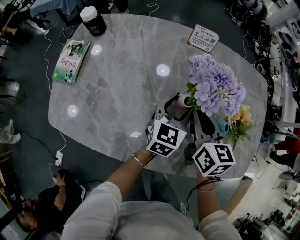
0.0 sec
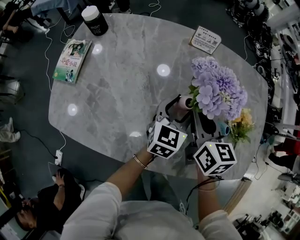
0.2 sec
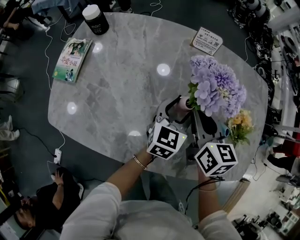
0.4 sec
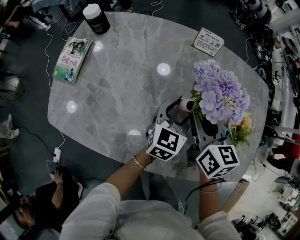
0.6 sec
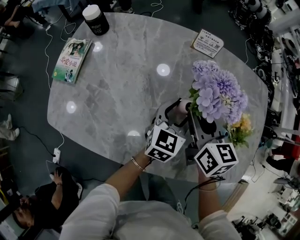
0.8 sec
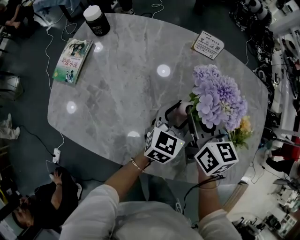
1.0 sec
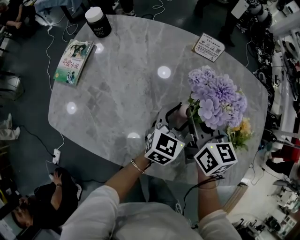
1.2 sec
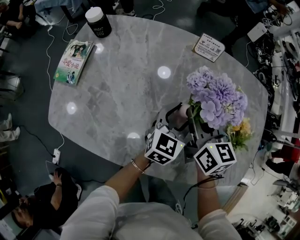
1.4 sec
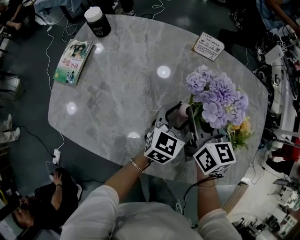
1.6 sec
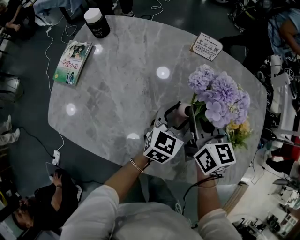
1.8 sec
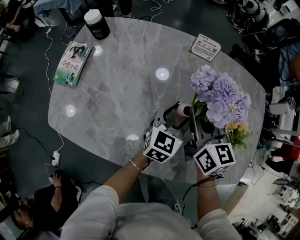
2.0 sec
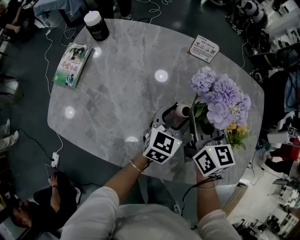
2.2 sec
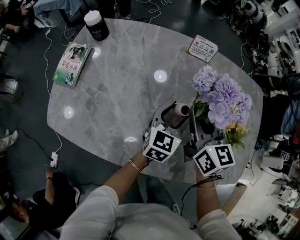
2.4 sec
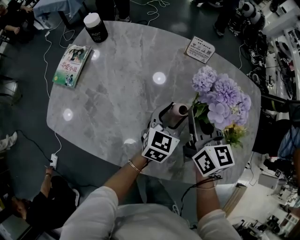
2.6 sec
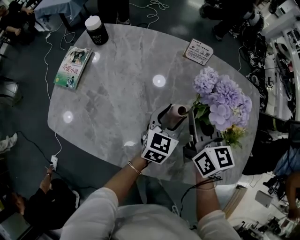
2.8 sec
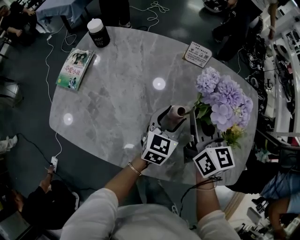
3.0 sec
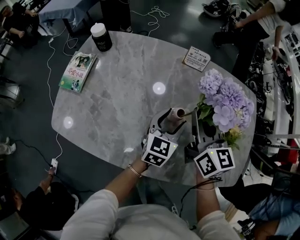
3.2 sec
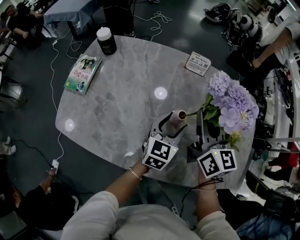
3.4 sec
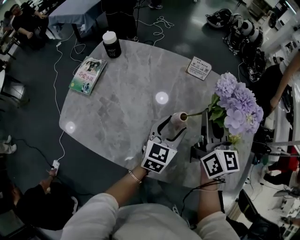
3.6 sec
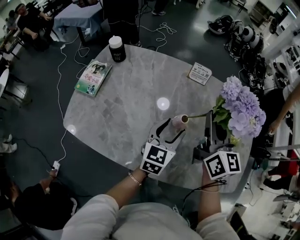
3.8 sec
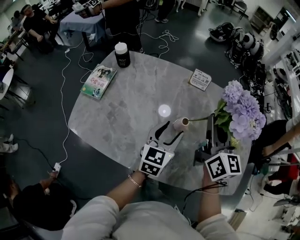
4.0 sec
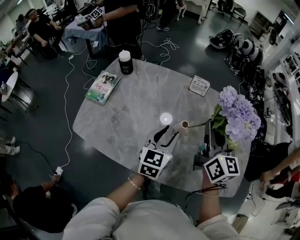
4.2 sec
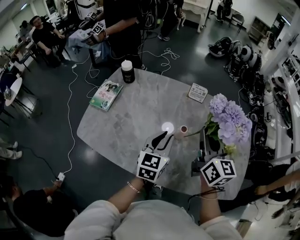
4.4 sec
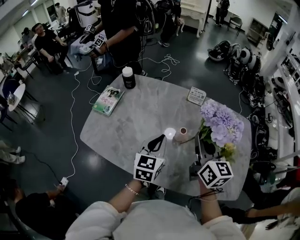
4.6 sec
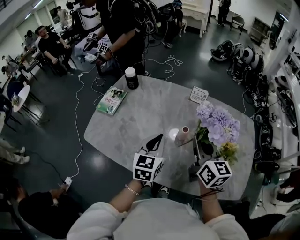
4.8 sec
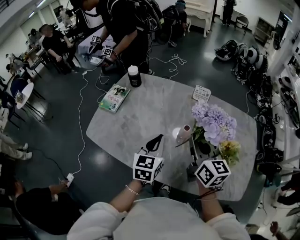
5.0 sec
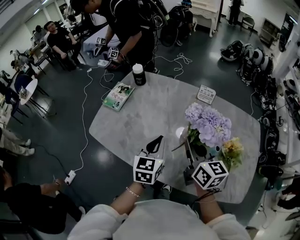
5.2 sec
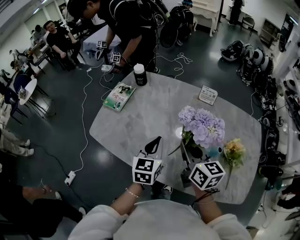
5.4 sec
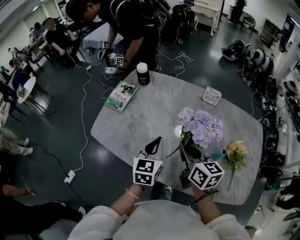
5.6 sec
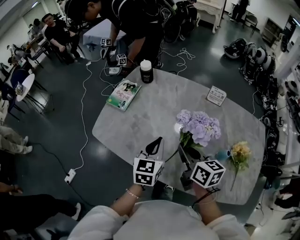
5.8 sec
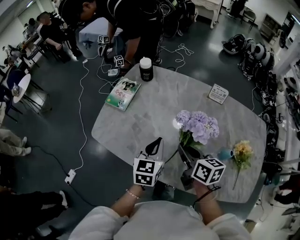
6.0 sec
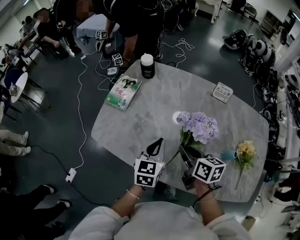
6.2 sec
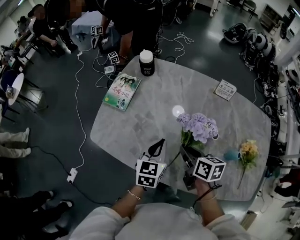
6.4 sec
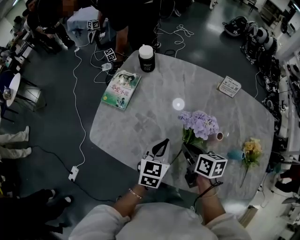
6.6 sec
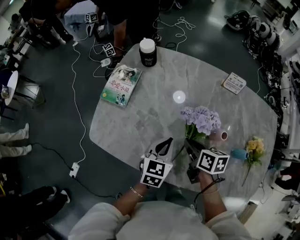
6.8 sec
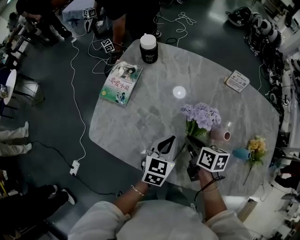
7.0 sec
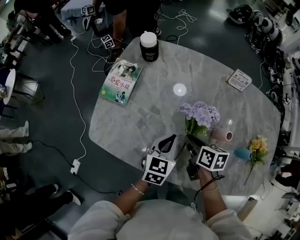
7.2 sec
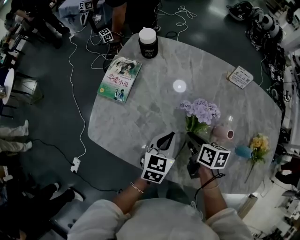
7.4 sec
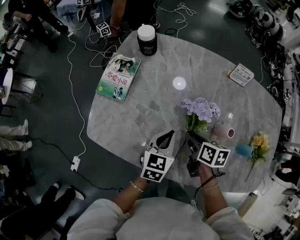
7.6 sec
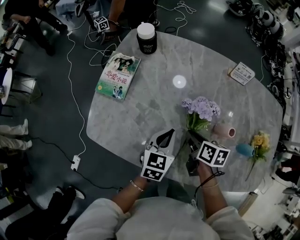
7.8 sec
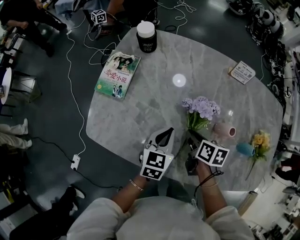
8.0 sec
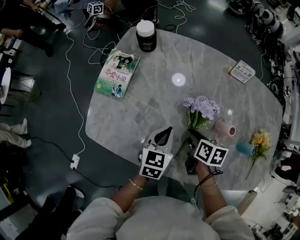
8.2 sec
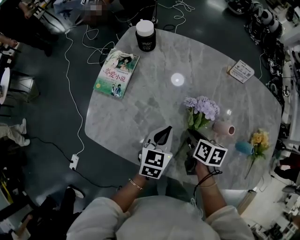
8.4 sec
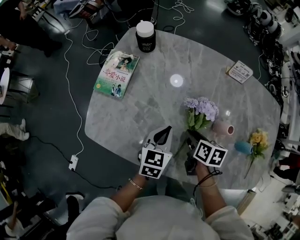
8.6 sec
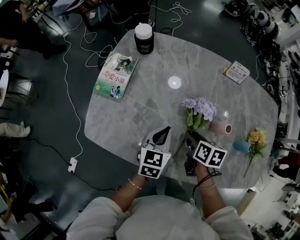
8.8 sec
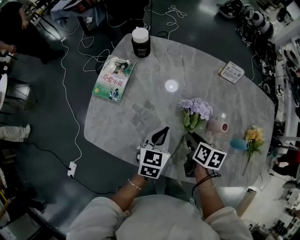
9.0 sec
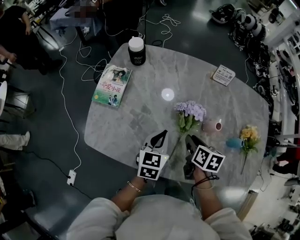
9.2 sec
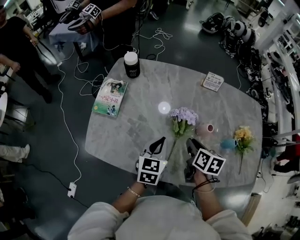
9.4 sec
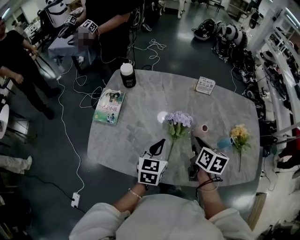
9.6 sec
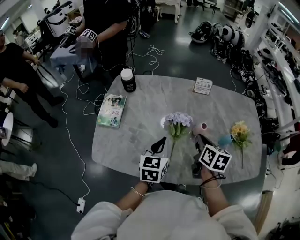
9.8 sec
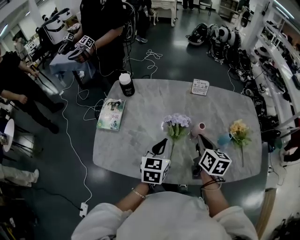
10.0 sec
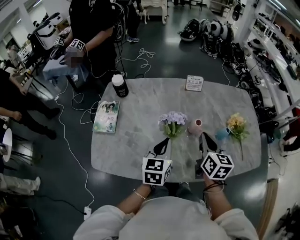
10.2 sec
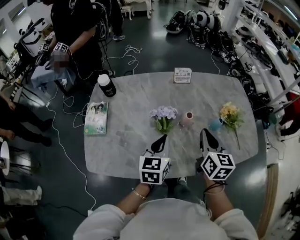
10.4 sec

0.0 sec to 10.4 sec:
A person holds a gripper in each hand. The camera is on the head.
0.0 sec to 1.4 sec: The right gripper shifts by about 5 cm.
1.4 sec to 3.0 sec: The right gripper moves upward, about 5 cm.
3.0 sec to 4.4 sec: The left gripper moves upward, to the left and backward, some 15 cm, and closes up. Meanwhile the right gripper heads upward and backward, covering some 15 cm.
4.4 sec to 6.0 sec: The left gripper shifts roughly 15 cm to the left; the right gripper is displaced to the left and downward by roughly 20 cm, and changes its angle by roughly 40 degrees.
6.0 sec to 7.4 sec: Both grippers move downward and forward, about 15 cm. The right gripper changes its angle by about 20 degrees.
7.4 sec to 9.0 sec: There are only small adjustments of the grippers.
9.0 sec to 10.4 sec: The left gripper travels upward and to the right by about 15 cm. The right gripper shifts approximately 25 cm upward and to the right, tilts its fingers about 30 degrees upward, and closes up.

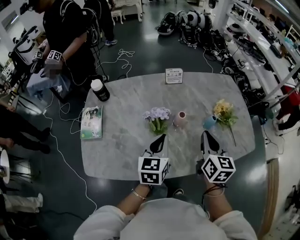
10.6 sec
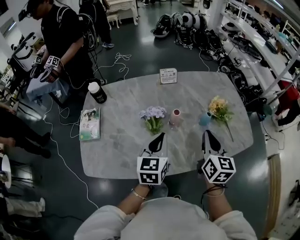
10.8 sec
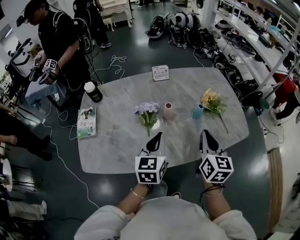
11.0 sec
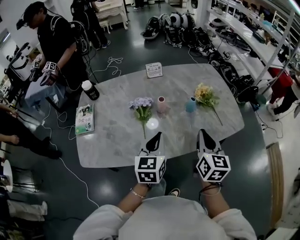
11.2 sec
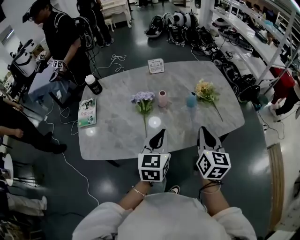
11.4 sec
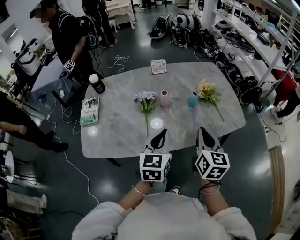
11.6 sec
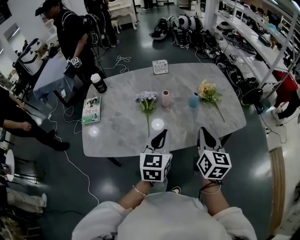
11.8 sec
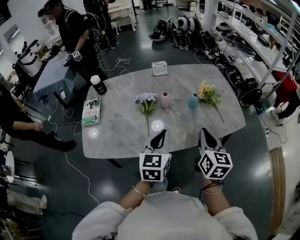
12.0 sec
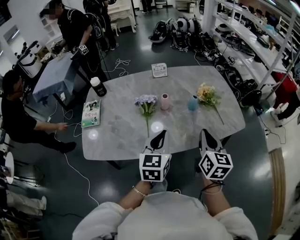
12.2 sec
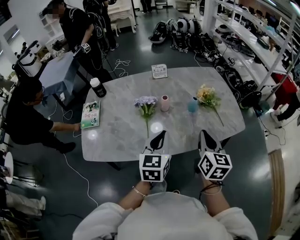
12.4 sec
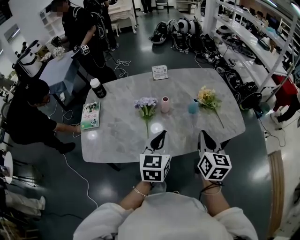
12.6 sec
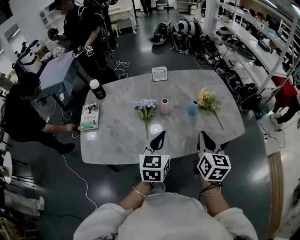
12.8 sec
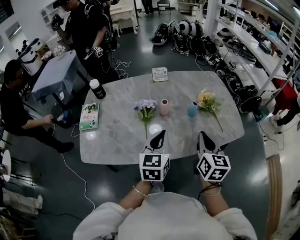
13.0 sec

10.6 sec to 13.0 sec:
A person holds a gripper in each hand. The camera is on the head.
10.6 sec to 11.8 sec: The grippers both shift backward and to the right by about 15 cm.
11.8 sec to 13.0 sec: The grippers make only small movements.

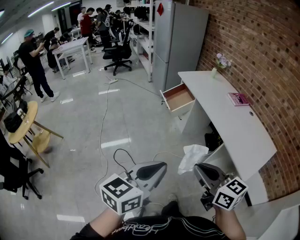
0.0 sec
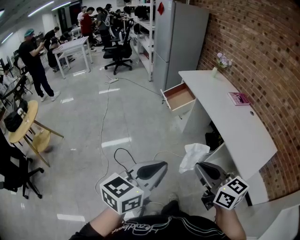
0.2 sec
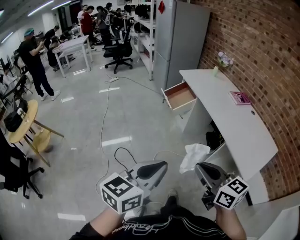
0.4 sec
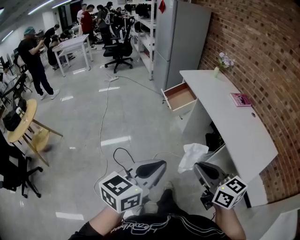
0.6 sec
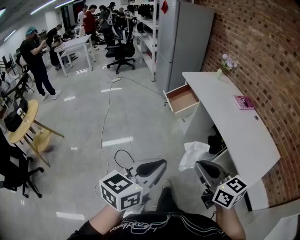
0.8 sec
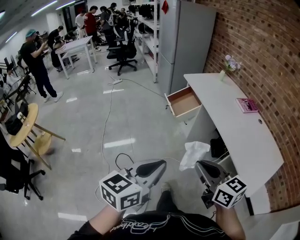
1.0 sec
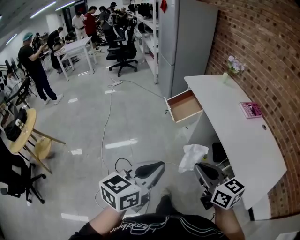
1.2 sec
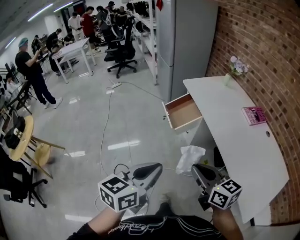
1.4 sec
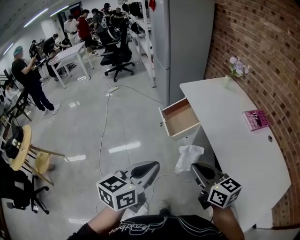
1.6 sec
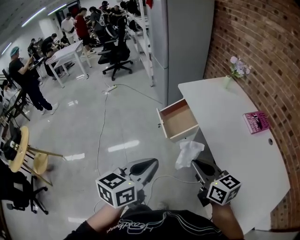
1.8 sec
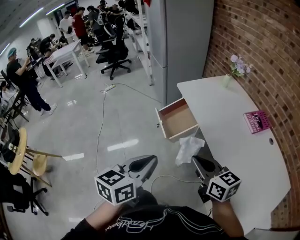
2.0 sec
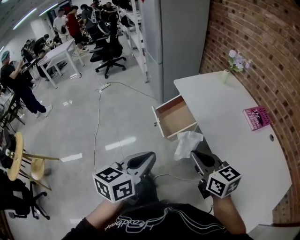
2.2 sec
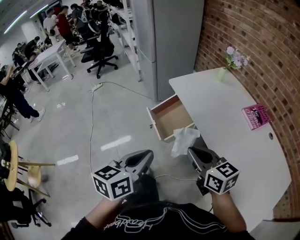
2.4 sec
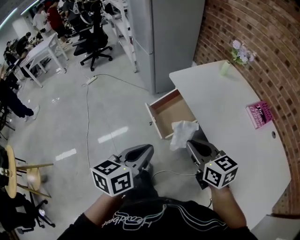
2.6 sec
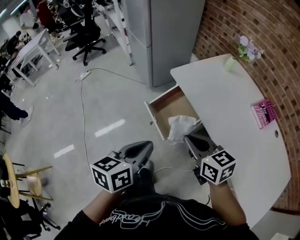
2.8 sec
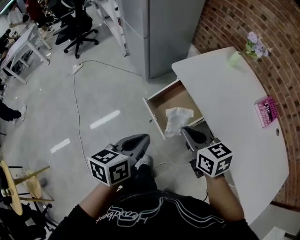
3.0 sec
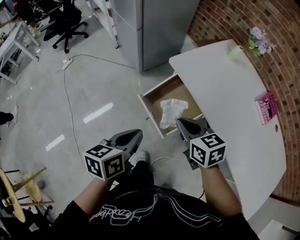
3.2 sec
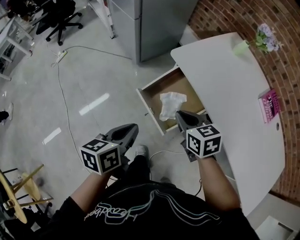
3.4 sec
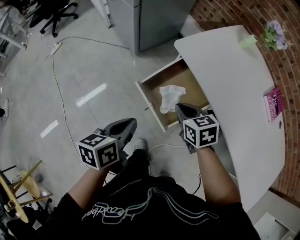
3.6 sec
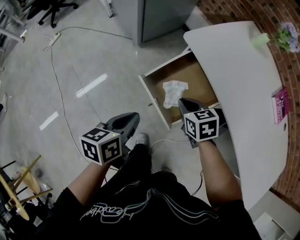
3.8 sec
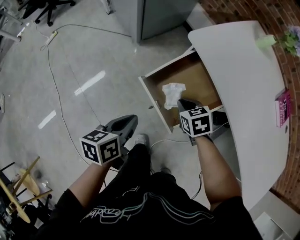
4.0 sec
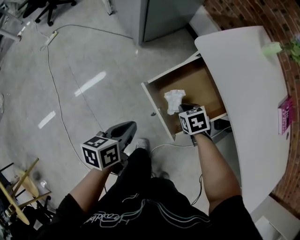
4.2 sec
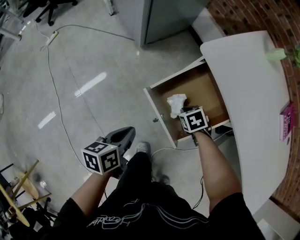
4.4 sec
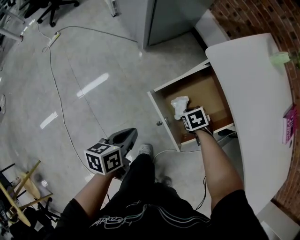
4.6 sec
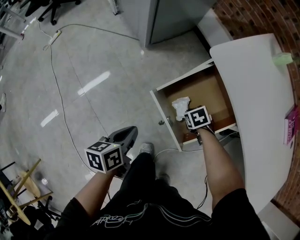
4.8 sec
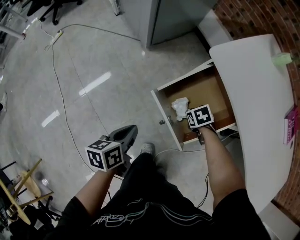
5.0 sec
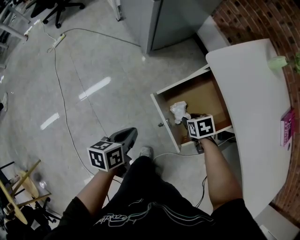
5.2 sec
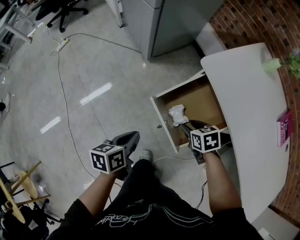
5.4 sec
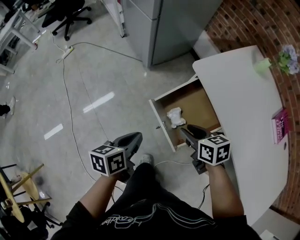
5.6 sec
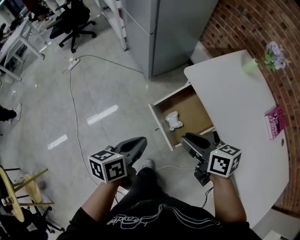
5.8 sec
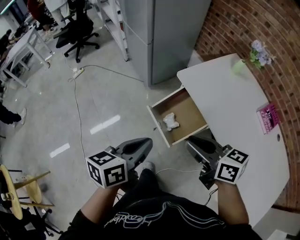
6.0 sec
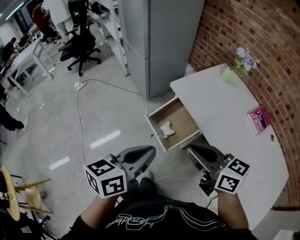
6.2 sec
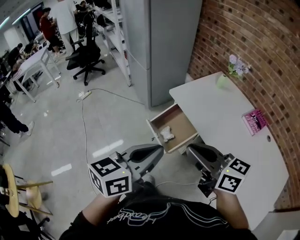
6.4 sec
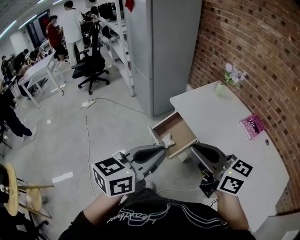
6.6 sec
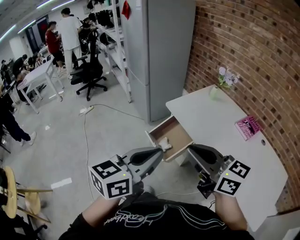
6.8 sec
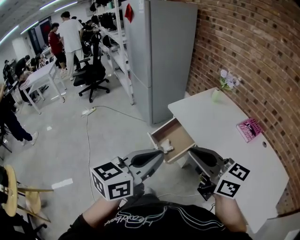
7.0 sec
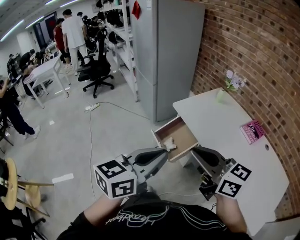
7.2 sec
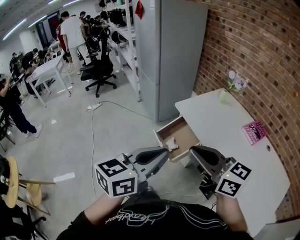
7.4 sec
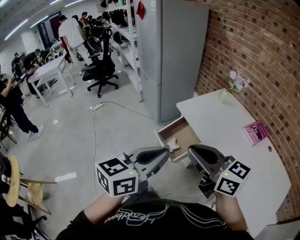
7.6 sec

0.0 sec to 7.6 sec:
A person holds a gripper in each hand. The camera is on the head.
0.0 sec to 1.6 sec: The pair of grippers is taken forward, approximately 40 cm.
1.6 sec to 3.0 sec: Both grippers are carried forward, some 40 cm. The right gripper changes its angle by some 20 degrees.
3.0 sec to 4.6 sec: The grippers both shift downward by about 35 cm. The right gripper points its fingers roughly 50 degrees further downward. The left gripper changes its angle by roughly 20 degrees.
4.6 sec to 6.0 sec: The grippers both shift upward by roughly 40 cm. The right gripper points its fingers some 60 degrees further upward, and opens and closes again. The left gripper rotates some 20 degrees.
6.0 sec to 7.6 sec: The right gripper moves backward and upward, approximately 25 cm, and changes its angle by approximately 30 degrees, while the left gripper is displaced backward, upward and to the right by some 30 cm, and rotates approximately 20 degrees.

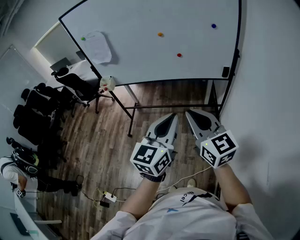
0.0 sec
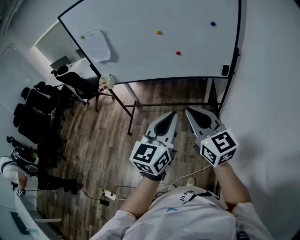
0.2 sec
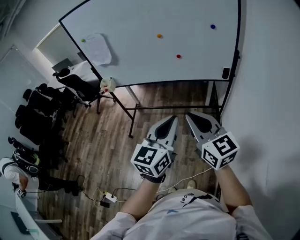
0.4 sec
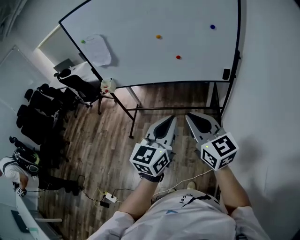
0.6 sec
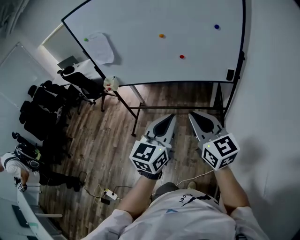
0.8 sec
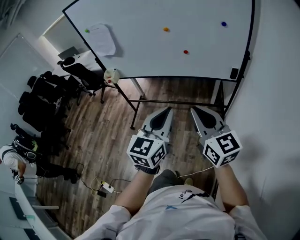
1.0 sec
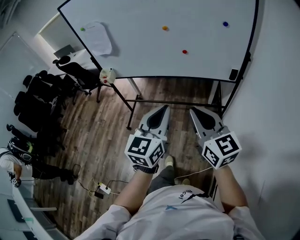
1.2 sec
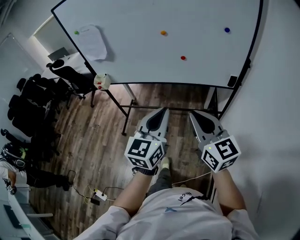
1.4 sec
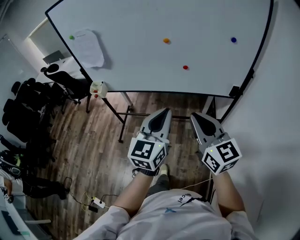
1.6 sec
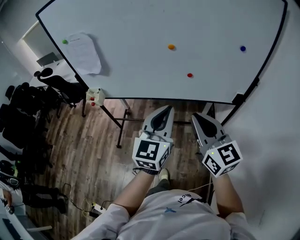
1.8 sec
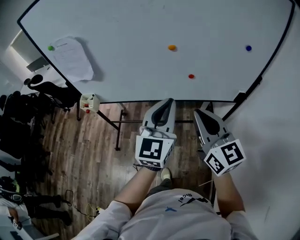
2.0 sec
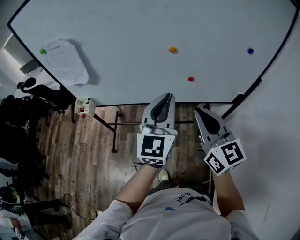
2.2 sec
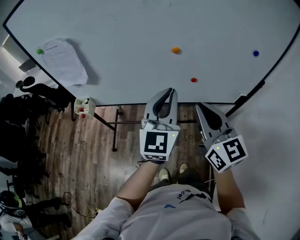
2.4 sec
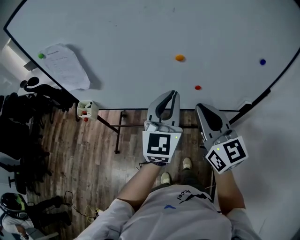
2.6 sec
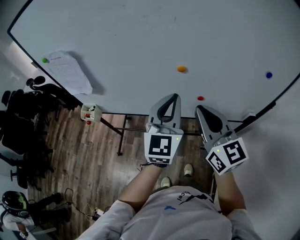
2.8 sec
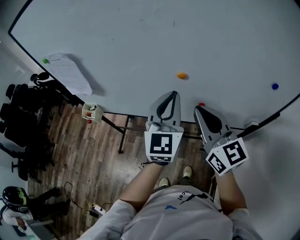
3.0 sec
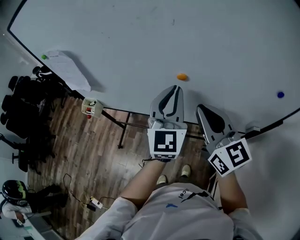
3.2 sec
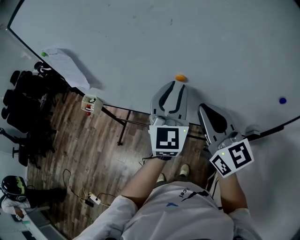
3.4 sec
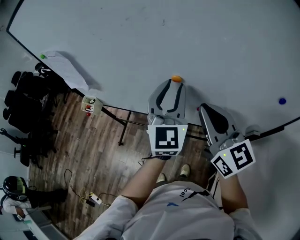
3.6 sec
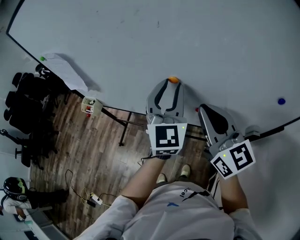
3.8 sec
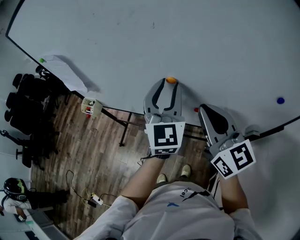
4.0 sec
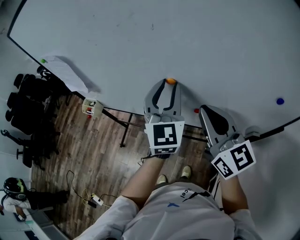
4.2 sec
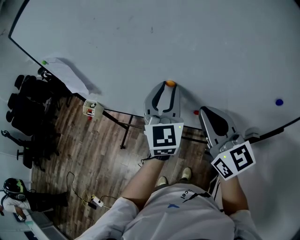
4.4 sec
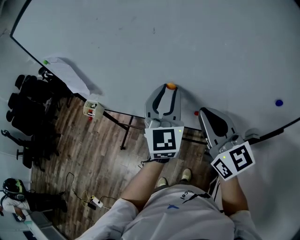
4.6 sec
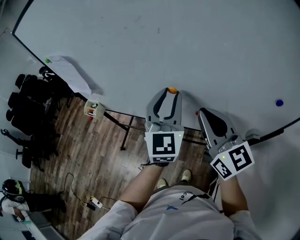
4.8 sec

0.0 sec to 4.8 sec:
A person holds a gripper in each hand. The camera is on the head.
0.0 sec to 1.6 sec: Both grippers travel together forward, about 20 cm.
1.6 sec to 3.2 sec: The two grippers go about 35 cm forward. The left gripper turns by approximately 20 degrees.
3.2 sec to 4.8 sec: The left gripper opens.
